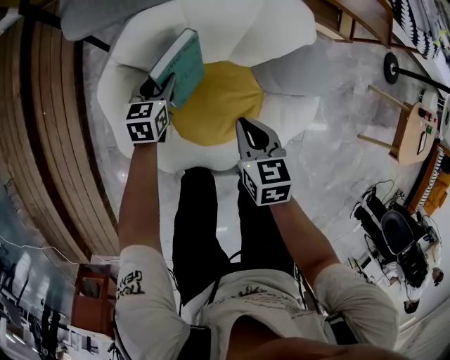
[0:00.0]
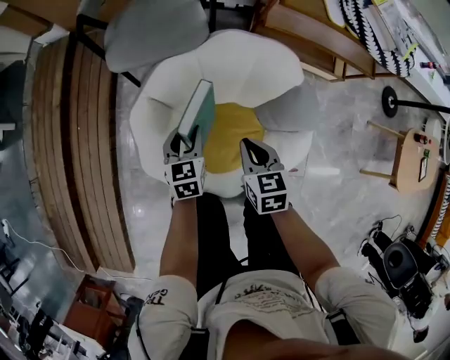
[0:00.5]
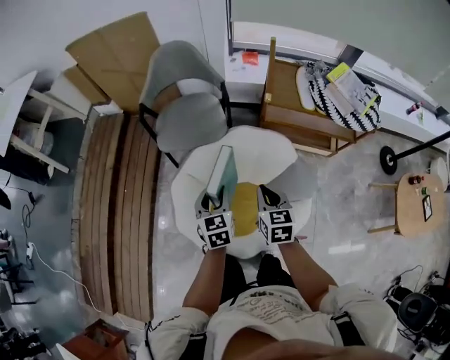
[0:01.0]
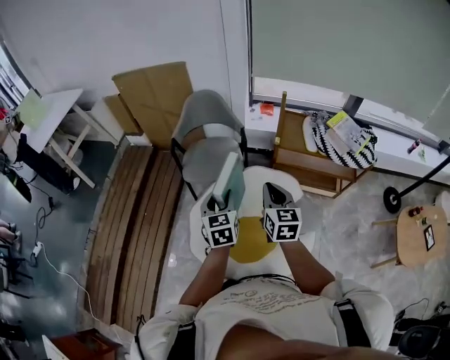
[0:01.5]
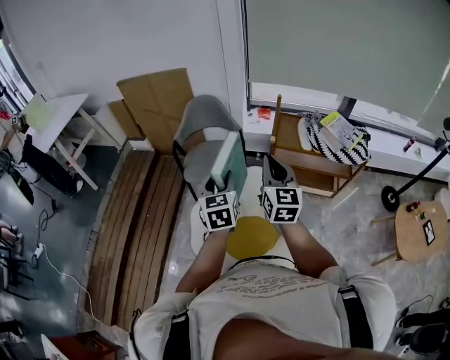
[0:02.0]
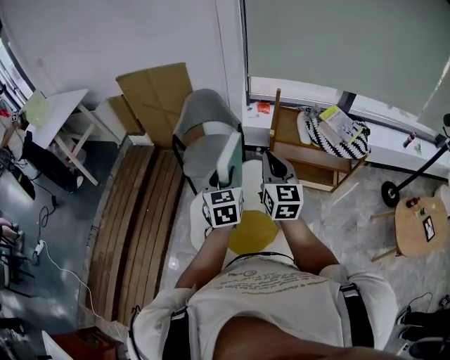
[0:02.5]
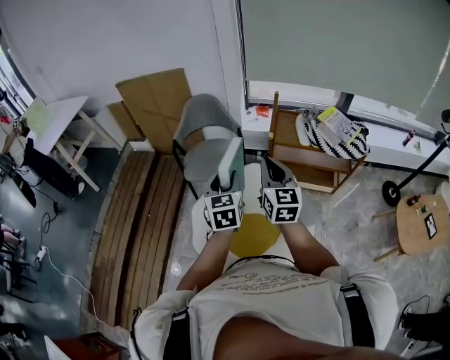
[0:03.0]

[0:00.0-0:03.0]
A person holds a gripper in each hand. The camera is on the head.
0:00.0 to 0:01.5: Both grippers move upward, approximately 50 cm. The right gripper angles its fingers upward, by about 30 degrees. Meanwhile the left gripper changes its angle by roughly 30 degrees.
0:01.5 to 0:03.0: Both grippers move upward, approximately 10 cm.

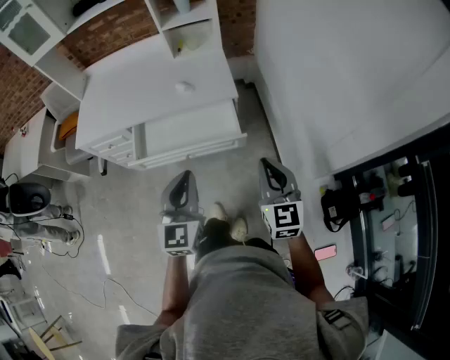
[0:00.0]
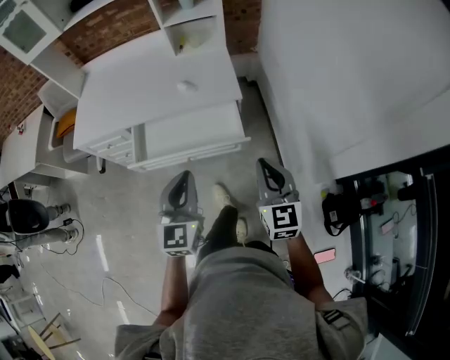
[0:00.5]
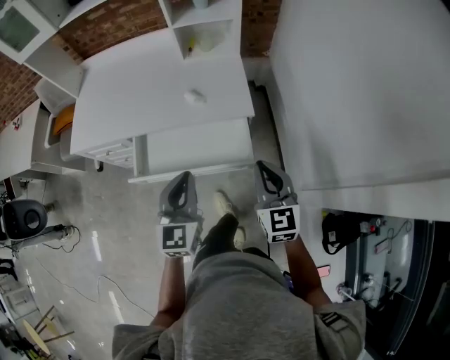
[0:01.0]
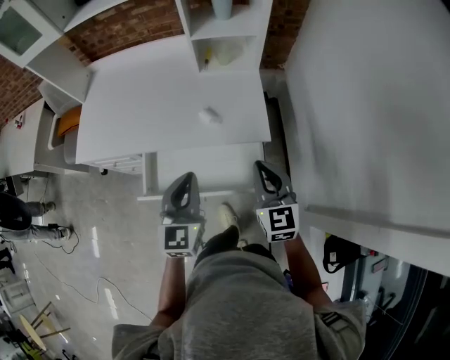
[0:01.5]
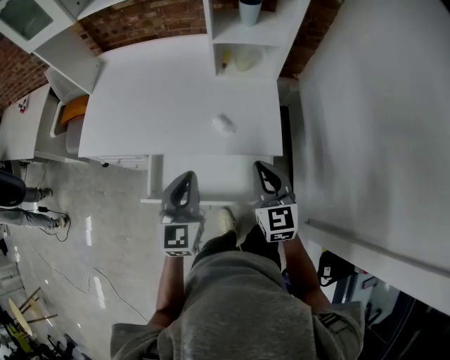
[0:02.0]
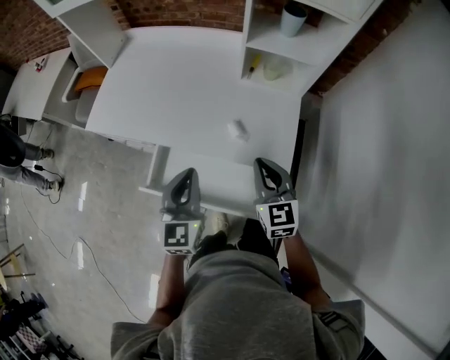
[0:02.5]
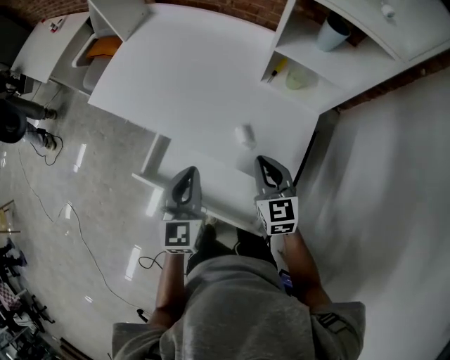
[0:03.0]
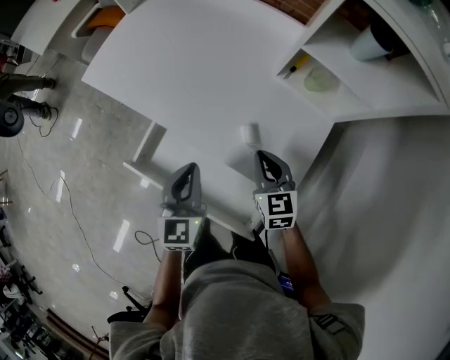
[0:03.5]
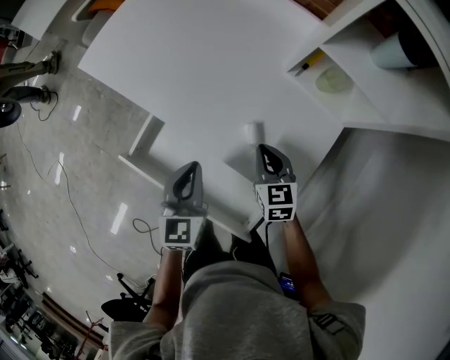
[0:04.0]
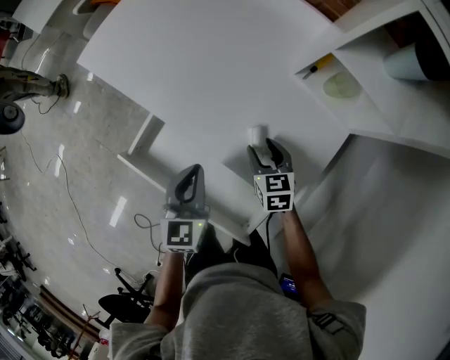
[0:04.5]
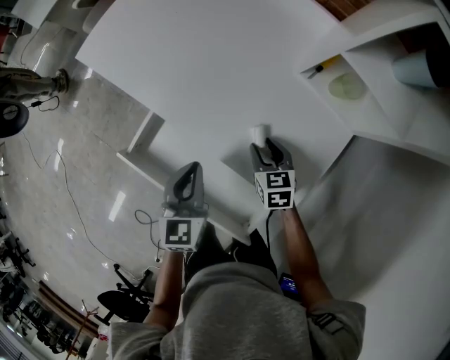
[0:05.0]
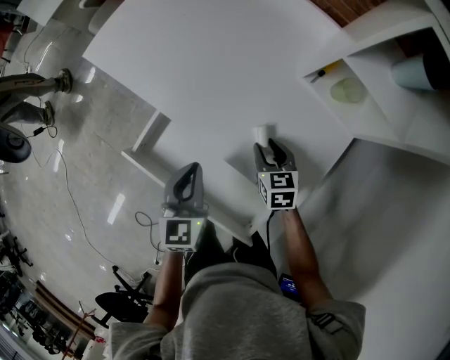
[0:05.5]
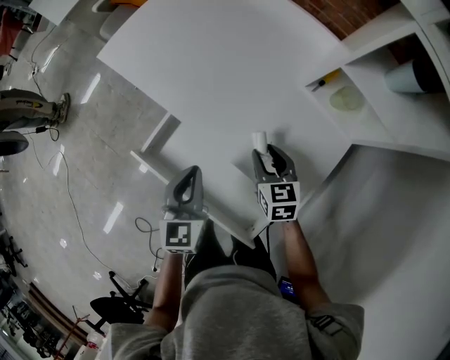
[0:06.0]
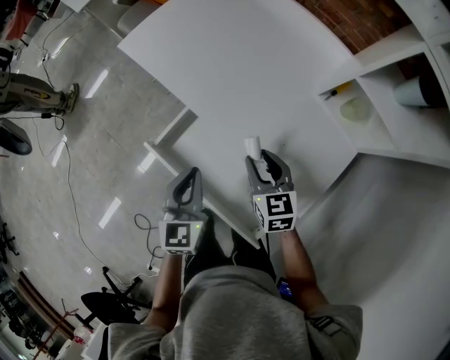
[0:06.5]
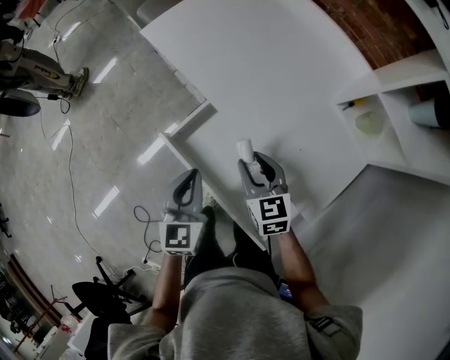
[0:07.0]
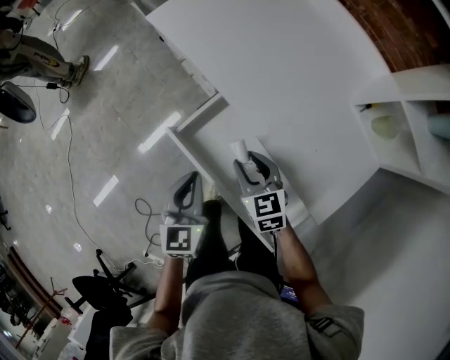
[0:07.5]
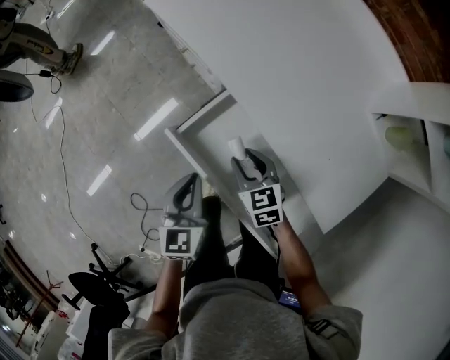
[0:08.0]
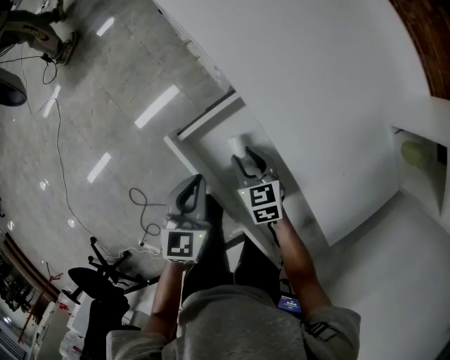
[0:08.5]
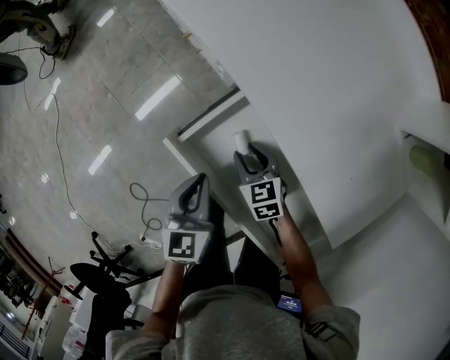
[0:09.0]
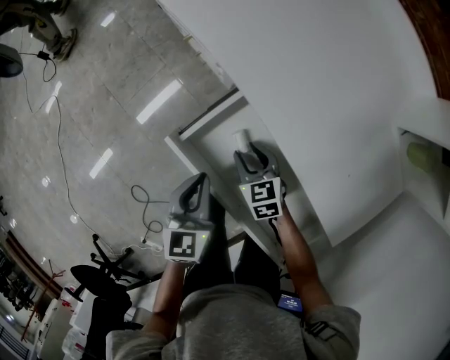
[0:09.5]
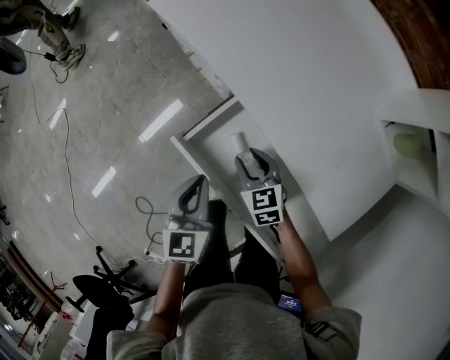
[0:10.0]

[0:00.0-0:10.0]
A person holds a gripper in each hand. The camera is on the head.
0:00.0 to 0:02.0: Both grippers move forward, approximately 35 cm.
0:02.0 to 0:04.0: The left gripper is displaced downward by about 15 cm, and swivels about 30 degrees, while the right gripper moves some 30 cm, and swivels some 40 degrees.
0:04.0 to 0:06.0: The right gripper reaches approximately 5 cm downward, then returns, and opens up.
0:06.0 to 0:08.0: The grippers both shift to the left and downward by about 25 cm. The right gripper turns by approximately 20 degrees.
0:08.0 to 0:10.0: The right gripper goes downward and returns, roughly 10 cm each way.

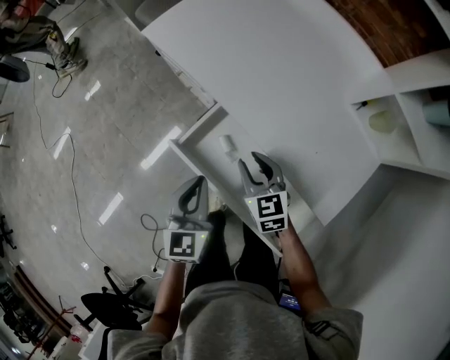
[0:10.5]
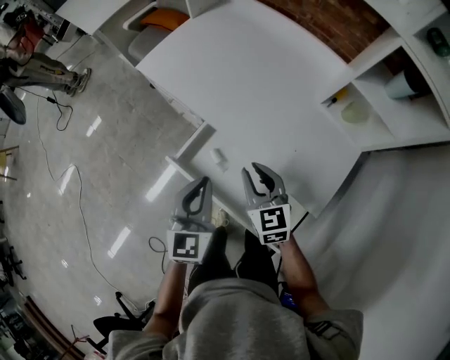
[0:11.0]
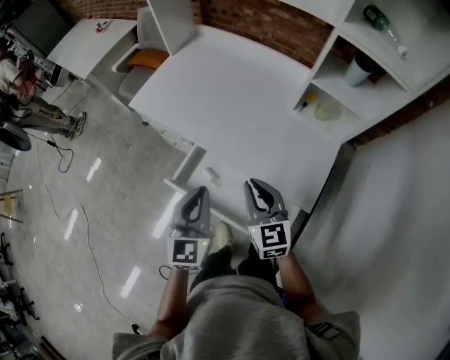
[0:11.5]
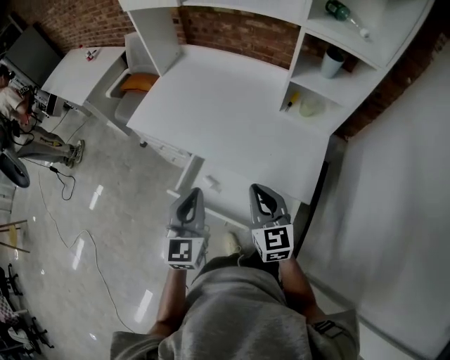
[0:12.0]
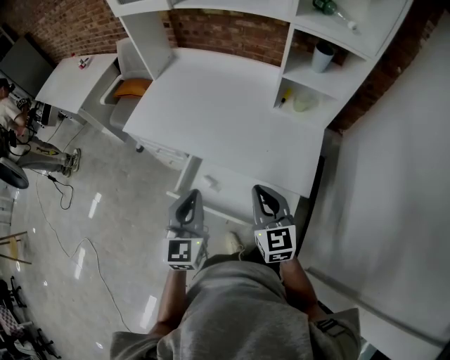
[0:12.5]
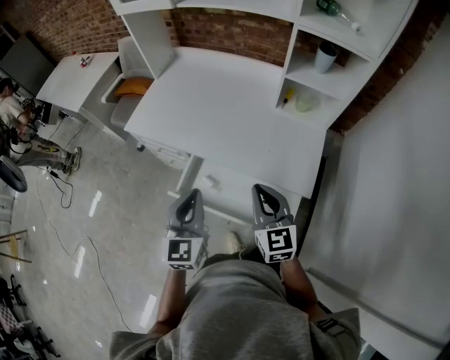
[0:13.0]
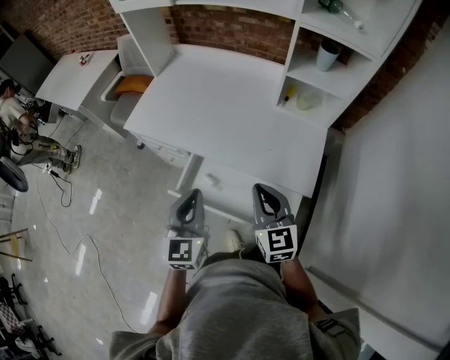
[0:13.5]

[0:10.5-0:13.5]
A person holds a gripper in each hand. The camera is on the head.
0:10.5 to 0:12.0: The right gripper shifts some 25 cm upward, backward and to the right, swivels approximately 30 degrees, and closes its fingers. Meanwhile the left gripper heads upward, covering about 20 cm, and turns by approximately 30 degrees.
0:12.0 to 0:13.5: The grippers stay close to where they were, moving slightly.

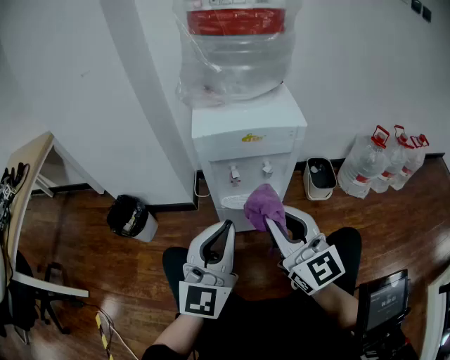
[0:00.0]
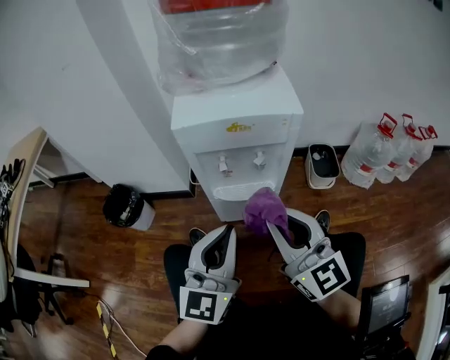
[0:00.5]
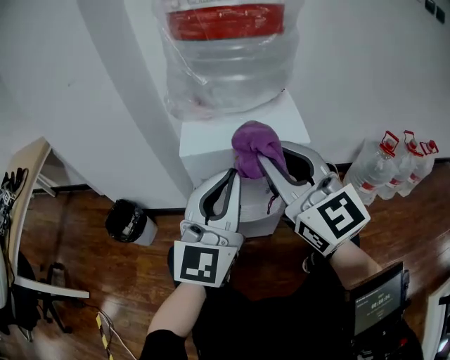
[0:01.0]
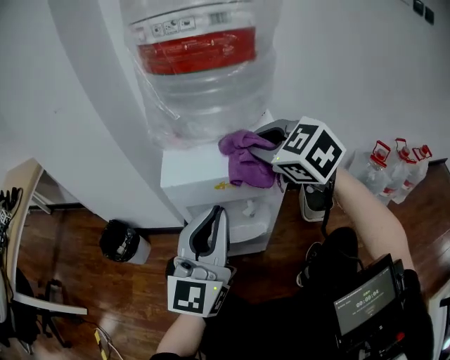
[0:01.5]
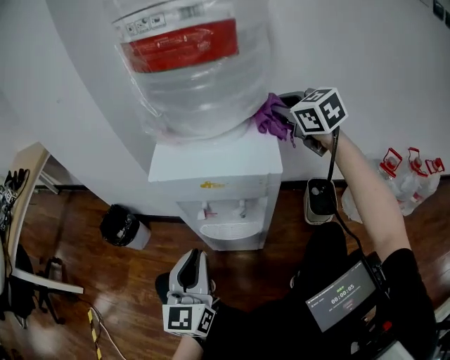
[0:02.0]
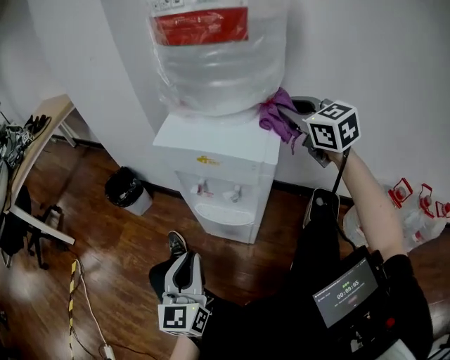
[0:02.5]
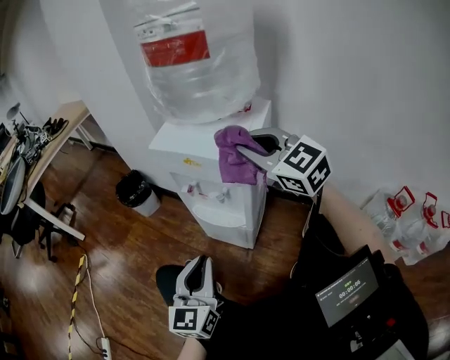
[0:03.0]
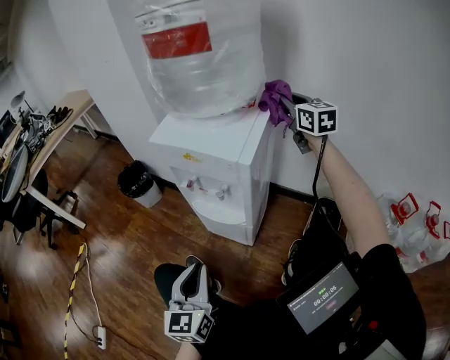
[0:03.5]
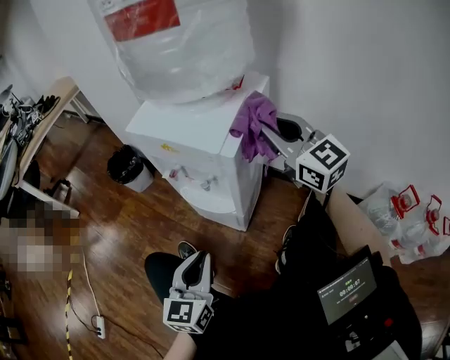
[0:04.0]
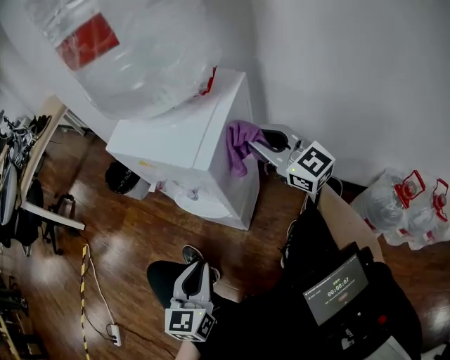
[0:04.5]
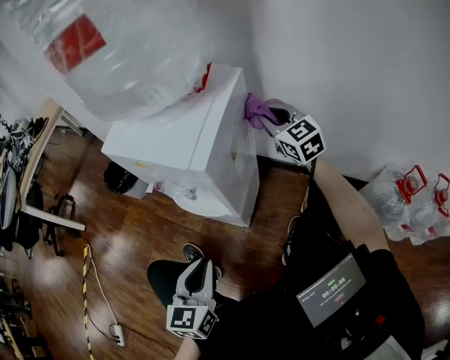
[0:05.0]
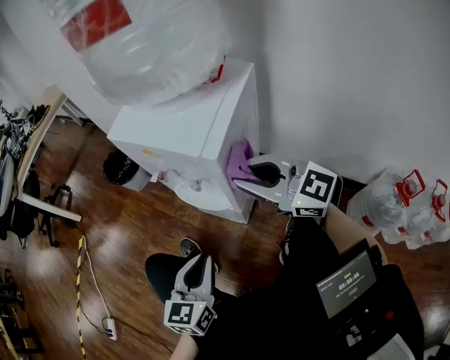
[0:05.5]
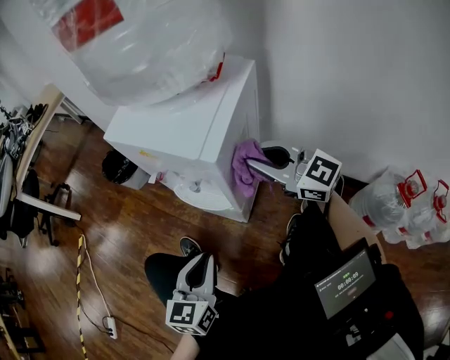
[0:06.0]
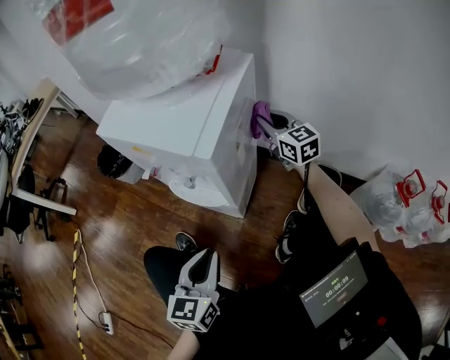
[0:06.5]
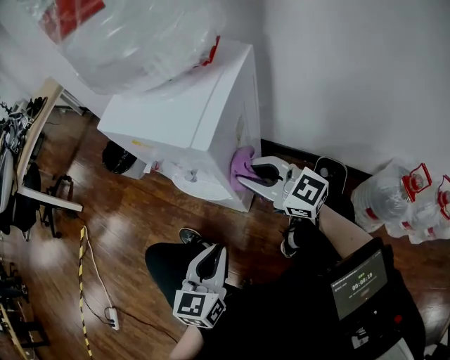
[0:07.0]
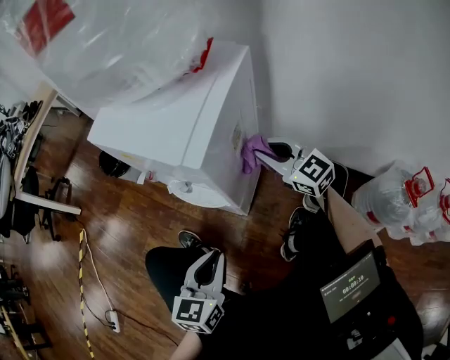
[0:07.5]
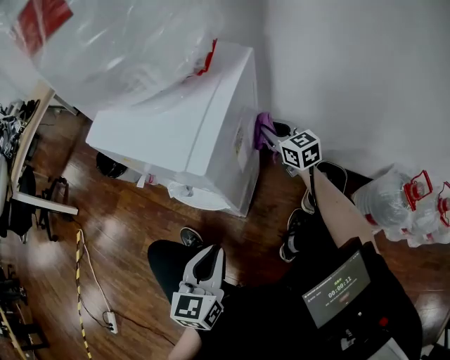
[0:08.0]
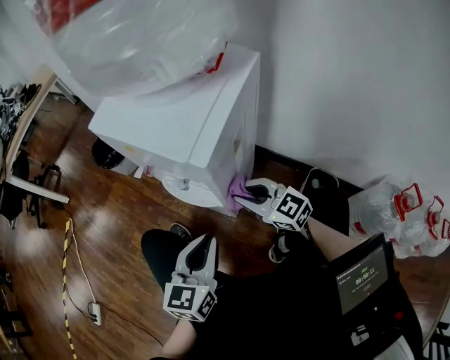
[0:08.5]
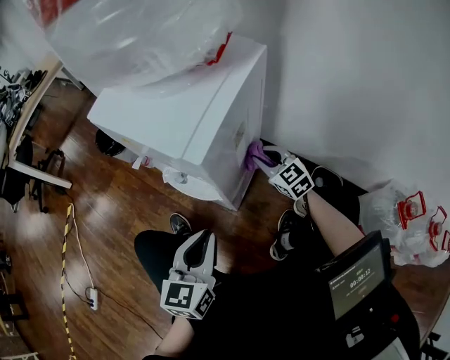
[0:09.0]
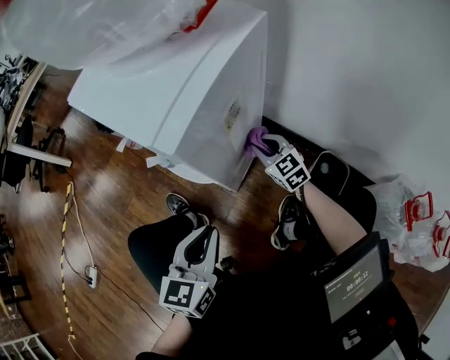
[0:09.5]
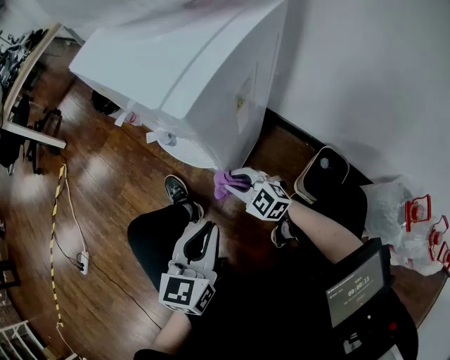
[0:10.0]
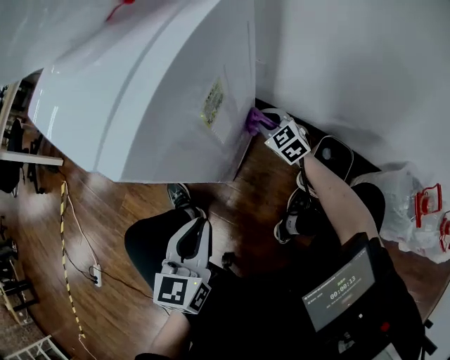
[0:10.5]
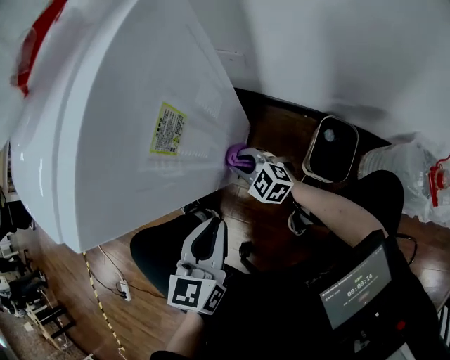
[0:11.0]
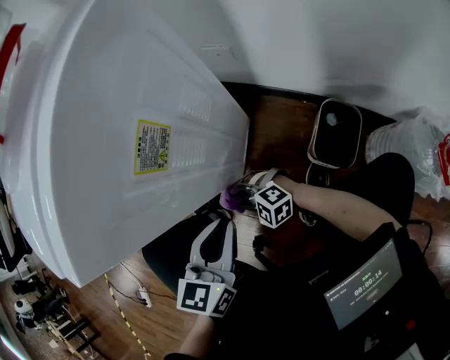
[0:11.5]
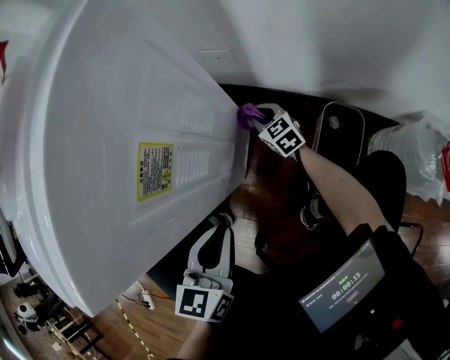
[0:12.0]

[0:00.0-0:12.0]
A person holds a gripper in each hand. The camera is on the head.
0:00.0 to 0:02.0: The left gripper moves up and down over approximately 15 cm, changing direction 2 times, and turns by approximately 30 degrees, while the right gripper travels forward and to the right by roughly 40 cm, and changes its angle by some 30 degrees.
0:02.0 to 0:04.0: The left gripper goes approximately 20 cm backward, to the right and downward; the right gripper swings forward and backward, about 20 cm each way, with 2 reversals, and turns by approximately 40 degrees.
0:04.0 to 0:06.0: The right gripper swings left and right, approximately 15 cm each way, with 2 reversals.
0:06.0 to 0:08.0: The left gripper ends up about 5 cm from where it was. The right gripper swings forward and backward, about 20 cm each way, with 2 reversals, and swivels some 30 degrees.
0:08.0 to 0:10.0: The right gripper goes left and right, approximately 20 cm each way, reversing 2 times, and swivels approximately 50 degrees.
0:10.0 to 0:12.0: The left gripper changes place by some 10 cm, while the right gripper shifts by some 30 cm, and swivels approximately 50 degrees.
